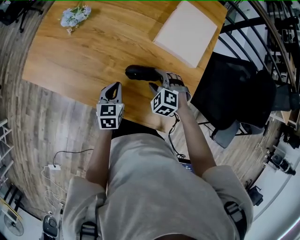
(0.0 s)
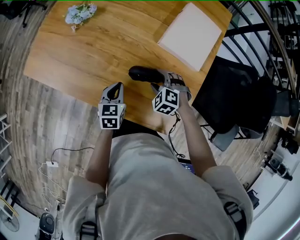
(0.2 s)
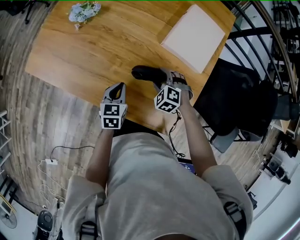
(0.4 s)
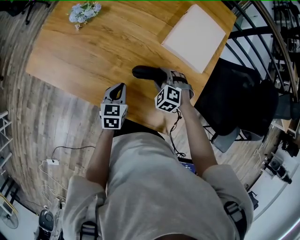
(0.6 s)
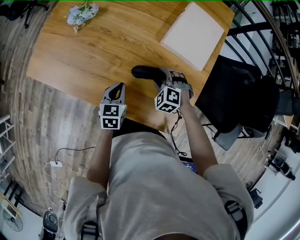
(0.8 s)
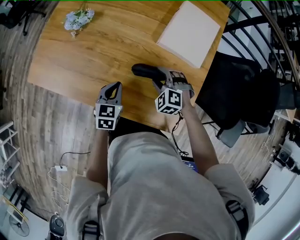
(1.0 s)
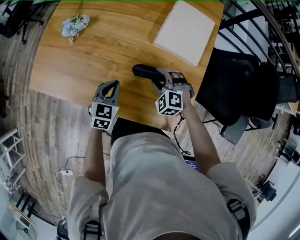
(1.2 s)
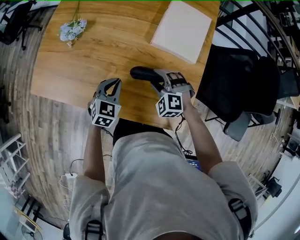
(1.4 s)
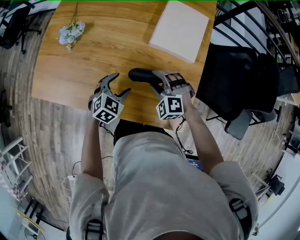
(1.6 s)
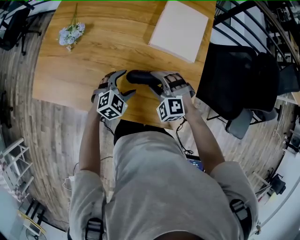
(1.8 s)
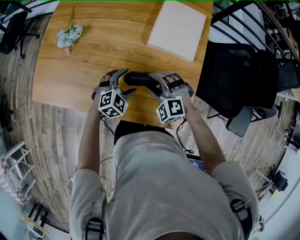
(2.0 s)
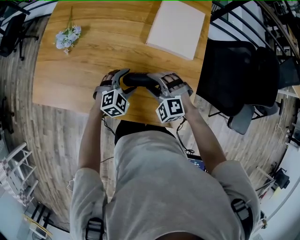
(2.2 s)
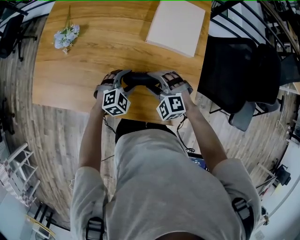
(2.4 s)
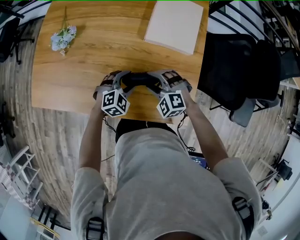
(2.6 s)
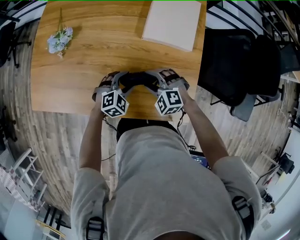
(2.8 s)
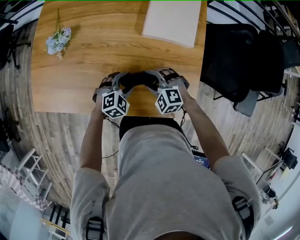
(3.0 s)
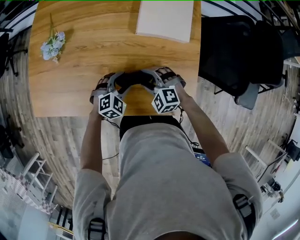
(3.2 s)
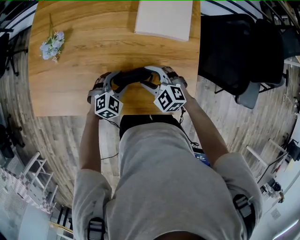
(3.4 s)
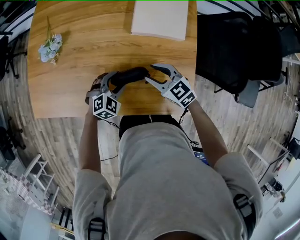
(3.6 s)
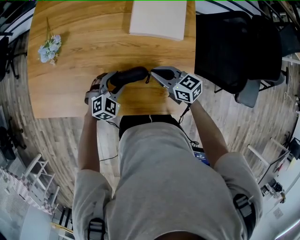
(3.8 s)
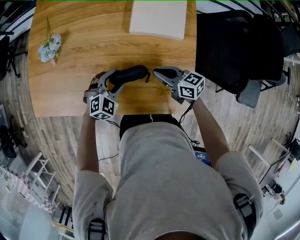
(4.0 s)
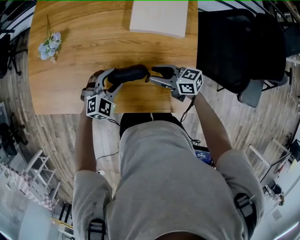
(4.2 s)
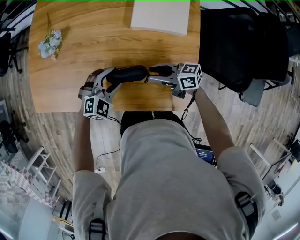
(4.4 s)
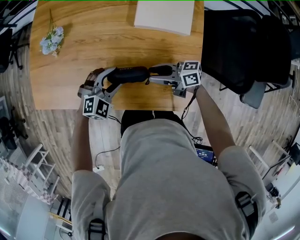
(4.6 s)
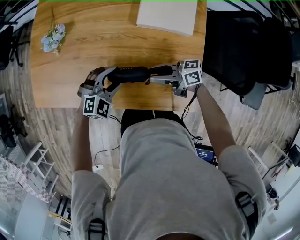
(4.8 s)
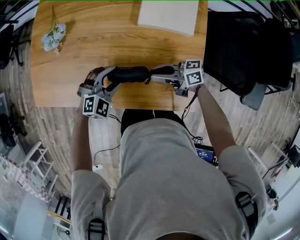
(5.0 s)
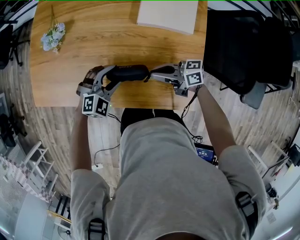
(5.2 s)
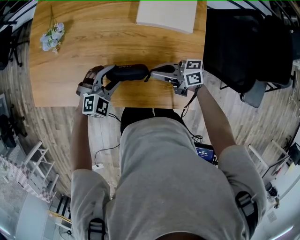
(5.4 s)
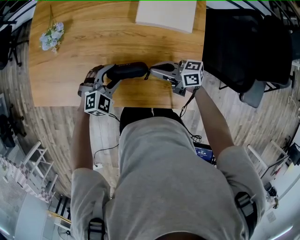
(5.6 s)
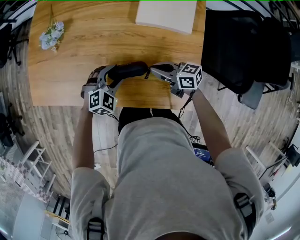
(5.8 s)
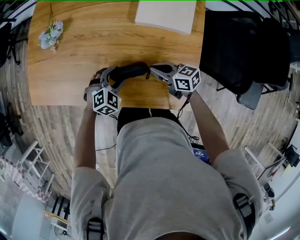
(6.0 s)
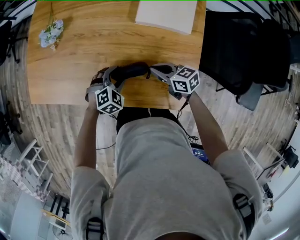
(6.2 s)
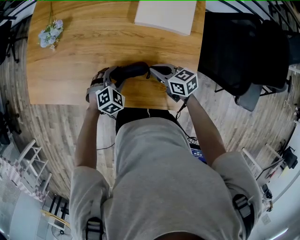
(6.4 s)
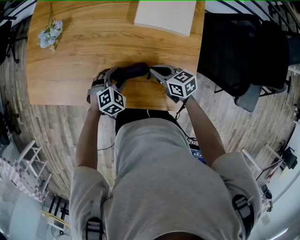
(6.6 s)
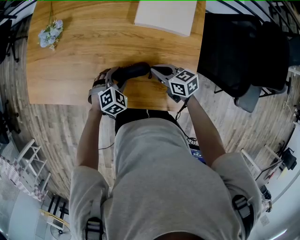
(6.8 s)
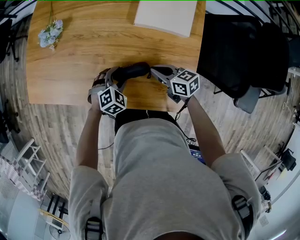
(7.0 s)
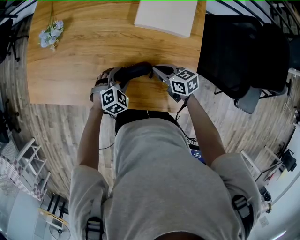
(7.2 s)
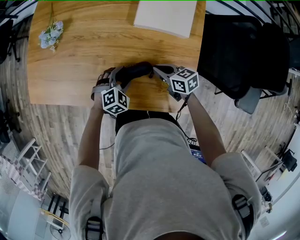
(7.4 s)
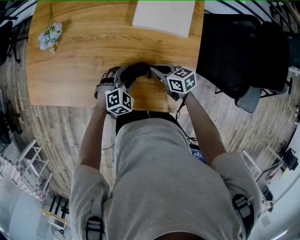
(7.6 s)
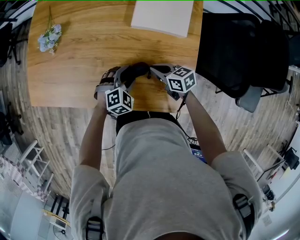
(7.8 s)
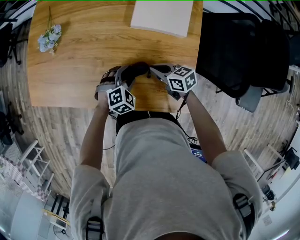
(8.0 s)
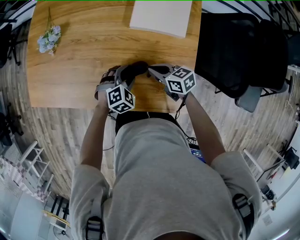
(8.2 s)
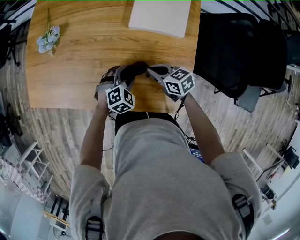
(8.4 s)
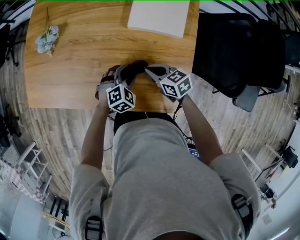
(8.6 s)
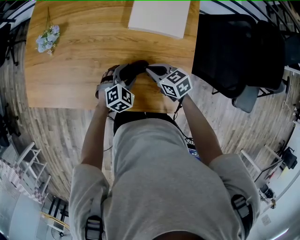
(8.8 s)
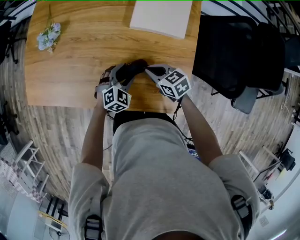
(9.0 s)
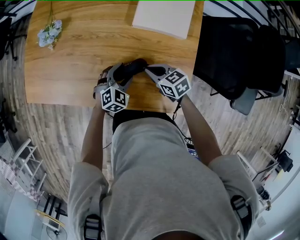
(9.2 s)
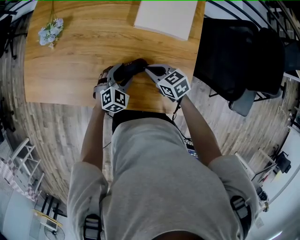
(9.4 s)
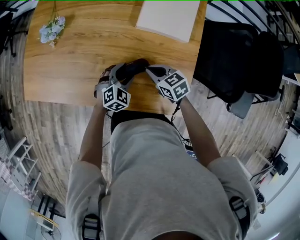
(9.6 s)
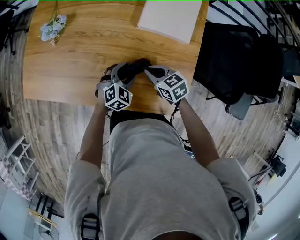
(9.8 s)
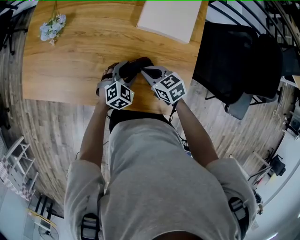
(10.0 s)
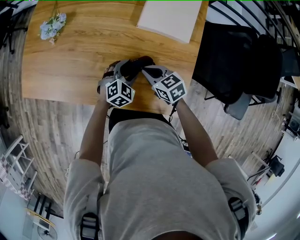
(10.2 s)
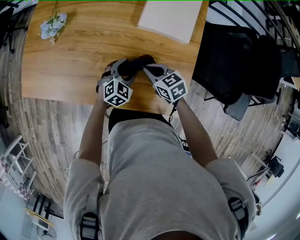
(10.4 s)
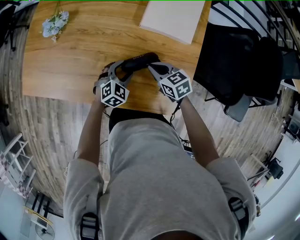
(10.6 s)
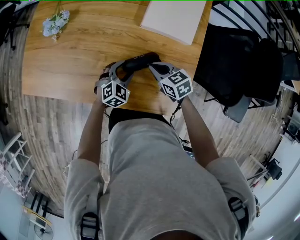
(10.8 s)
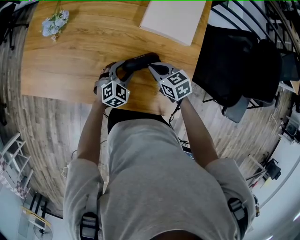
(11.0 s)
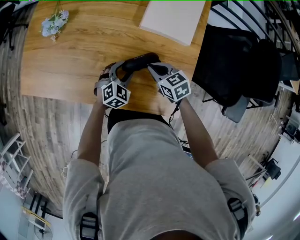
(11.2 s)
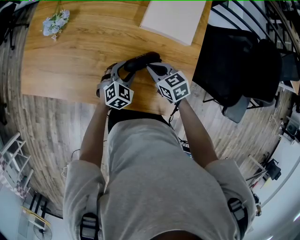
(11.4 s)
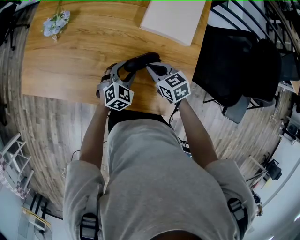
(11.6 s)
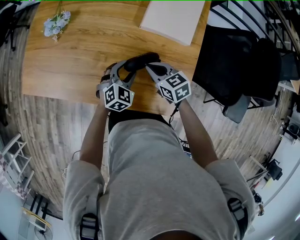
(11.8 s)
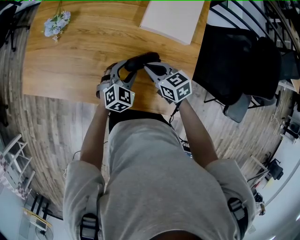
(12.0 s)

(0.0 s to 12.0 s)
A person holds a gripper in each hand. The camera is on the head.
0.0 s - 1.6 s: The right gripper heads upward, covering some 5 cm. The left gripper twists some 40 degrees clockwise, seen from behind, and opens.
1.6 s - 3.0 s: The left gripper travels downward by about 5 cm, and changes its angle by about 30 degrees. The right gripper changes place by some 5 cm.
3.0 s - 4.4 s: The right gripper travels to the right by roughly 5 cm, twists approximately 70 degrees clockwise, seen from behind, and closes, then opens again; the left gripper shifts by approximately 5 cm.
4.4 s - 6.0 s: The right gripper closes.
6.0 s - 7.6 s: The left gripper goes approximately 5 cm to the right.
7.6 s - 10.4 s: The grippers stay close to where they were, moving slightly.
10.4 s - 12.0 s: The grippers move only a little.

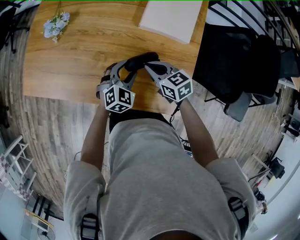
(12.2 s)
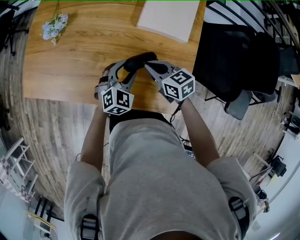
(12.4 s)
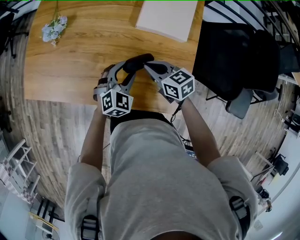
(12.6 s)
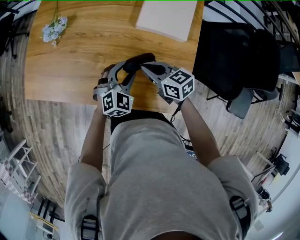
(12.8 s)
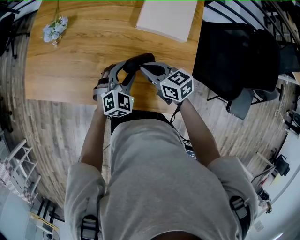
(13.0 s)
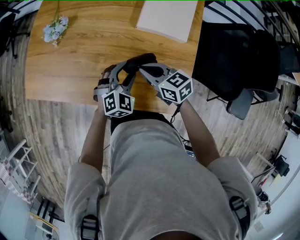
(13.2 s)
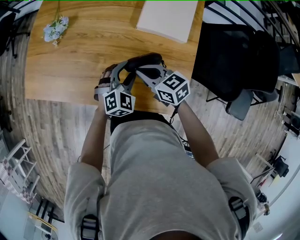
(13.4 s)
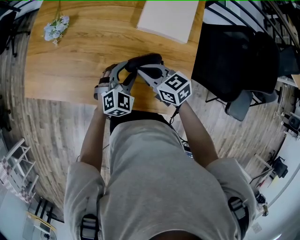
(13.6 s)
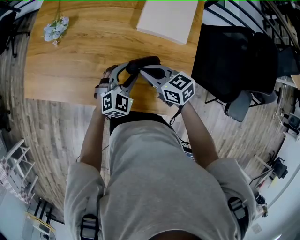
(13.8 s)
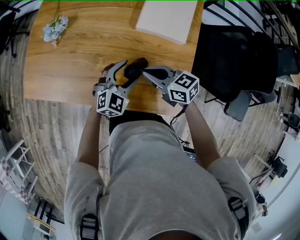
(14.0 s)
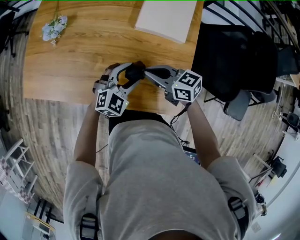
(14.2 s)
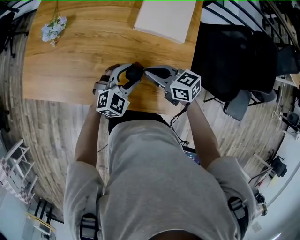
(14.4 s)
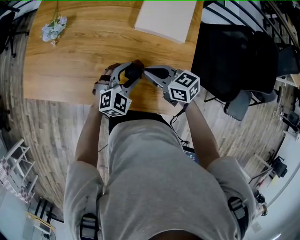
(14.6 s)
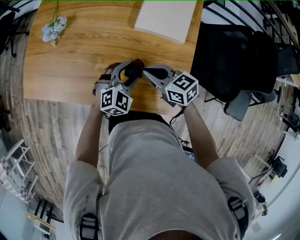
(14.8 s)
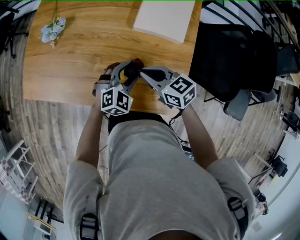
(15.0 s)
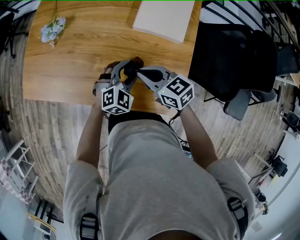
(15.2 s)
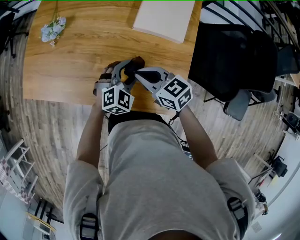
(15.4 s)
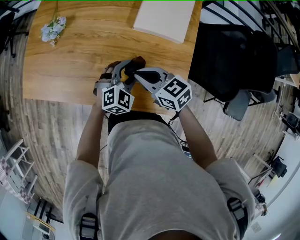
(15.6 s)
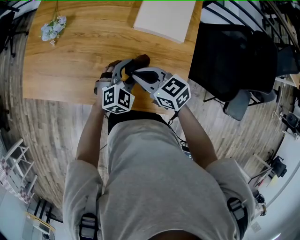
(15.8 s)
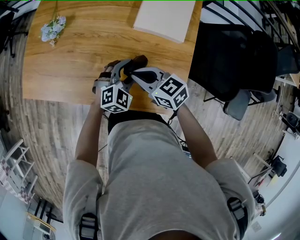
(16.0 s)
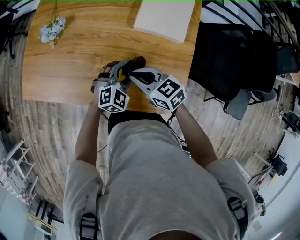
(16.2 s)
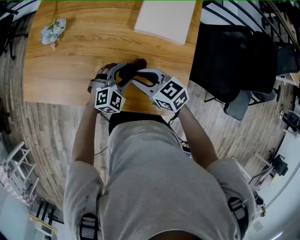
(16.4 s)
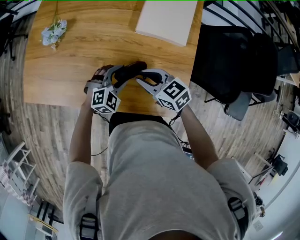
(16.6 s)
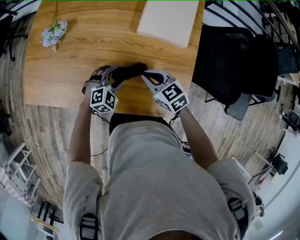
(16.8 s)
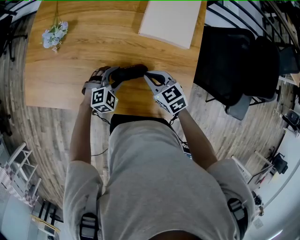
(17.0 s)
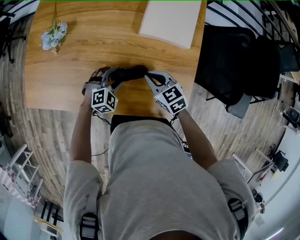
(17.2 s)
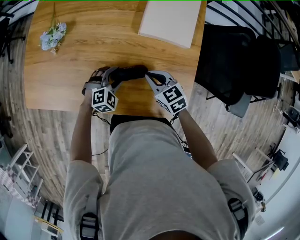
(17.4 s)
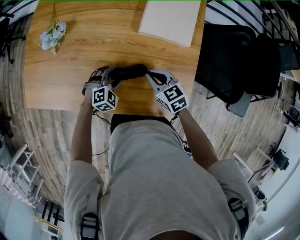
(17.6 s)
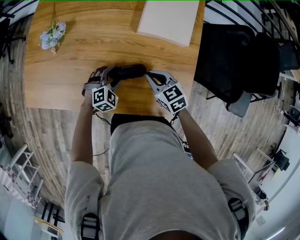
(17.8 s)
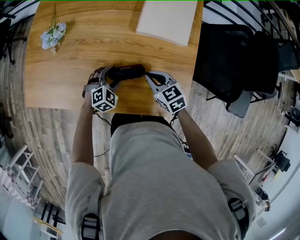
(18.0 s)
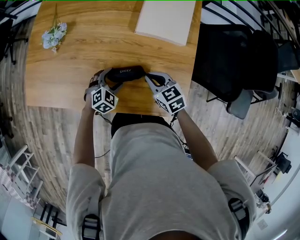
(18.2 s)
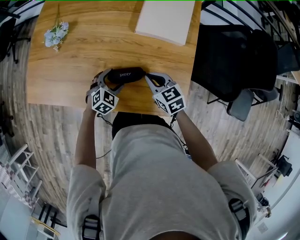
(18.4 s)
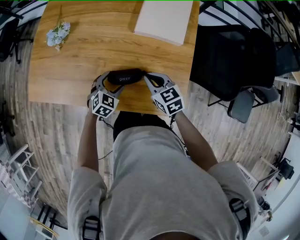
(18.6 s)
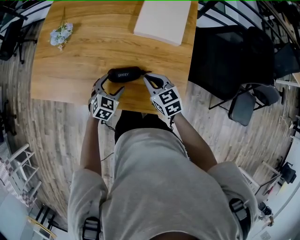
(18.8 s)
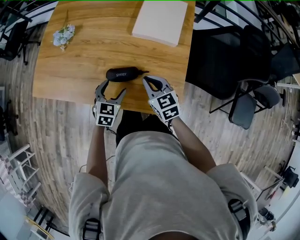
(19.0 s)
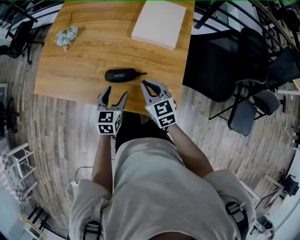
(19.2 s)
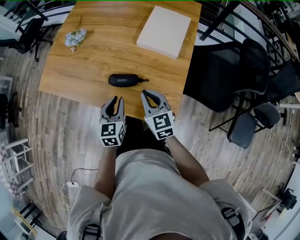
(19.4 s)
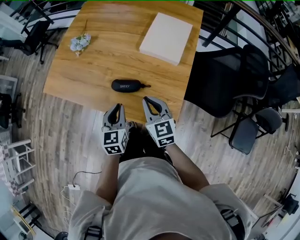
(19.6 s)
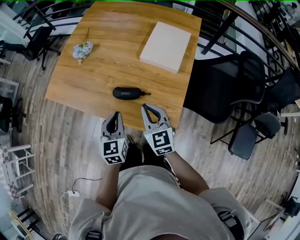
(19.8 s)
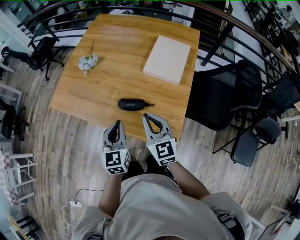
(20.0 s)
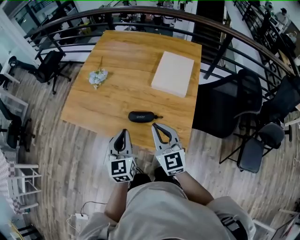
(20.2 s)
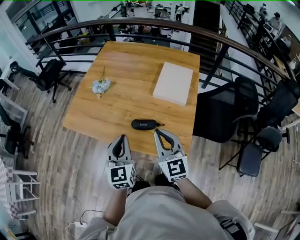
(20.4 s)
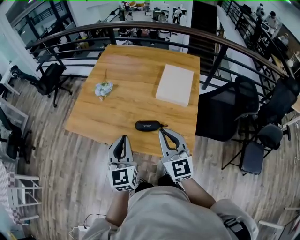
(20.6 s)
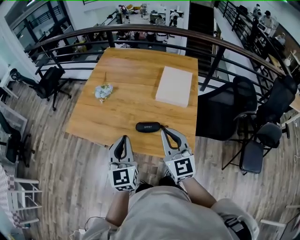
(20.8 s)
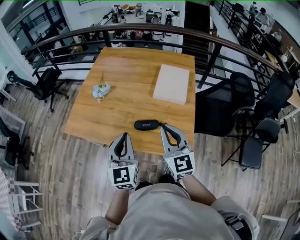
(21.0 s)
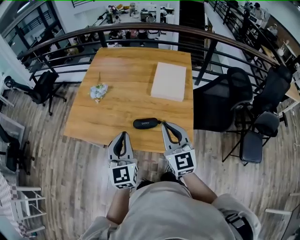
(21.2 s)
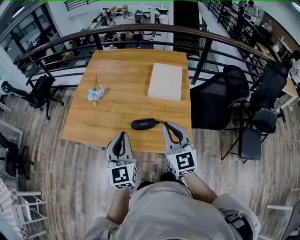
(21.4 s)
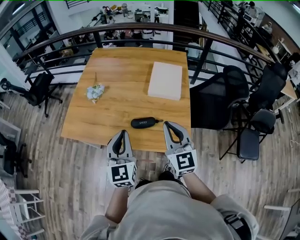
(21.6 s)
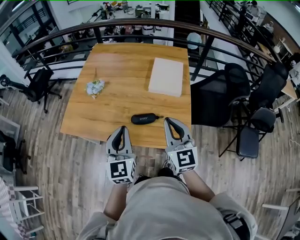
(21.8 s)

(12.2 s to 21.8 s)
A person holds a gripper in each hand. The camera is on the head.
12.2 s - 13.8 s: The grippers move only a little.
13.8 s - 15.4 s: The grippers make only small movements.
15.4 s - 17.0 s: The right gripper shifts some 5 cm downward. Meanwhile the left gripper shifts about 10 cm to the left and downward.
17.0 s - 18.6 s: The left gripper rotates approximately 30 degrees.
18.6 s - 20.2 s: The grippers both shift upward and backward by roughly 30 cm. The left gripper points its fingers roughly 30 degrees further upward, and closes its fingers; the right gripper changes its angle by roughly 30 degrees.
20.2 s - 21.8 s: The grippers both shift upward by some 5 cm.

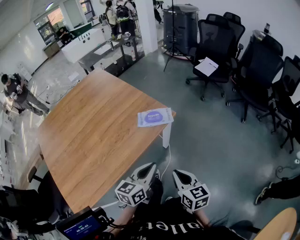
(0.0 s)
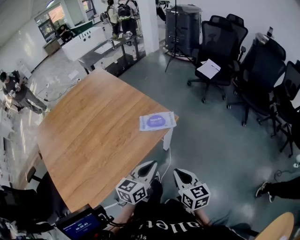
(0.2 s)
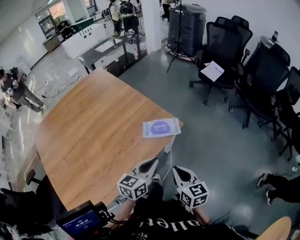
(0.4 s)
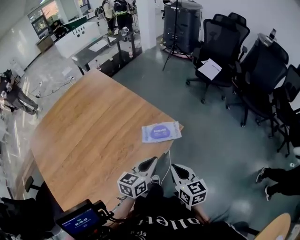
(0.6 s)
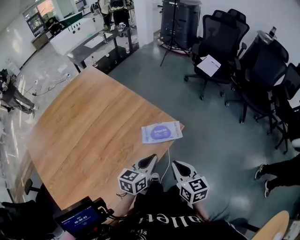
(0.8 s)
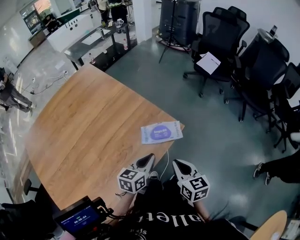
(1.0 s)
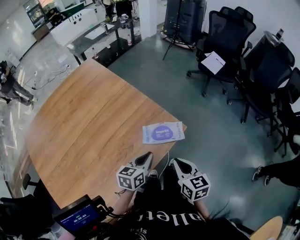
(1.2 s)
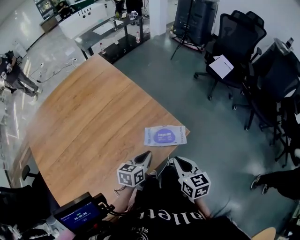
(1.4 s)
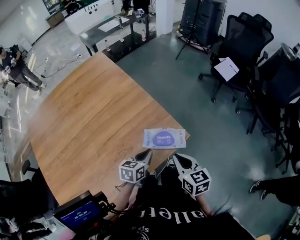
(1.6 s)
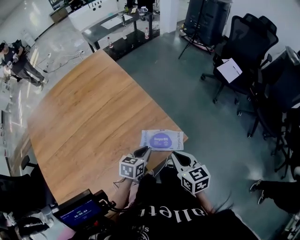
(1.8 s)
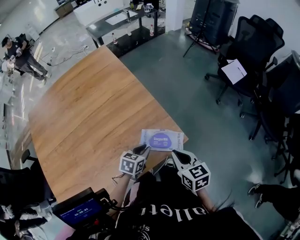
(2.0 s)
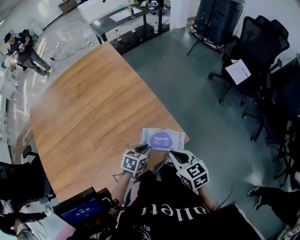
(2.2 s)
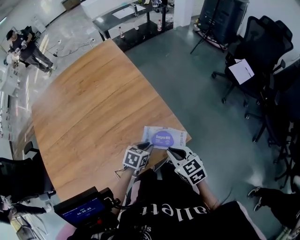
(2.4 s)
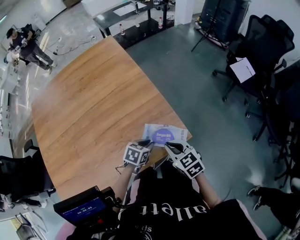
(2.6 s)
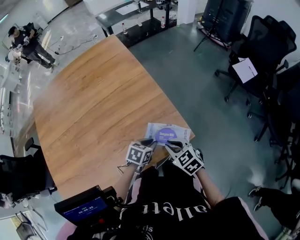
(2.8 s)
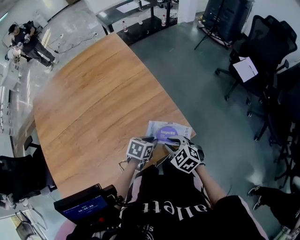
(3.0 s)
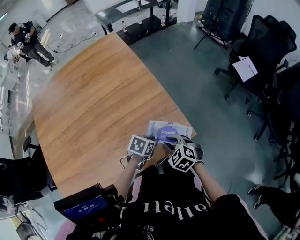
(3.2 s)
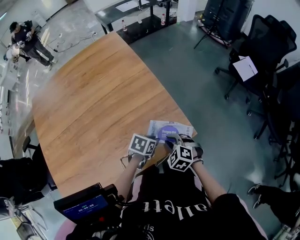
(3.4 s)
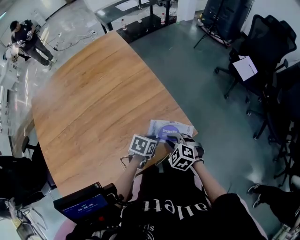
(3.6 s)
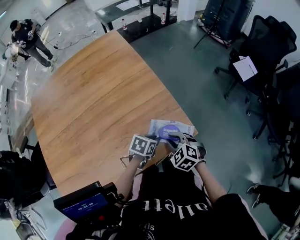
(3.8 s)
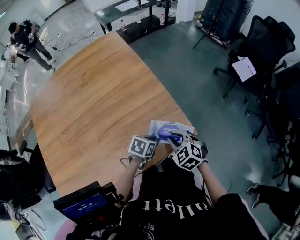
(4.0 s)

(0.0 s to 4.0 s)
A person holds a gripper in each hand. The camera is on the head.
0.0 s - 1.4 s: The left gripper travels forward, to the left and downward by approximately 30 cm. Meanwhile the right gripper heads forward, covering approximately 25 cm.
1.4 s - 2.6 s: The left gripper goes roughly 10 cm downward and forward, and turns by about 20 degrees; the right gripper is displaced forward by approximately 10 cm, and turns by roughly 40 degrees.
2.6 s - 4.0 s: The right gripper rotates some 30 degrees.
